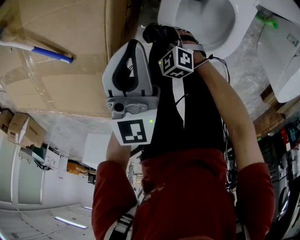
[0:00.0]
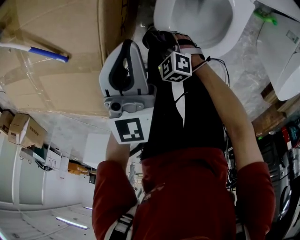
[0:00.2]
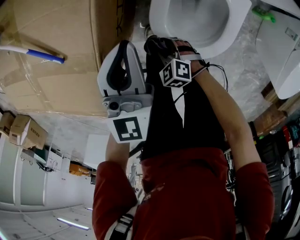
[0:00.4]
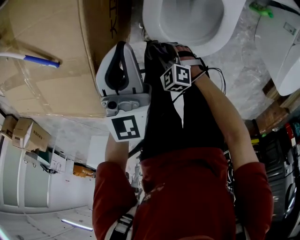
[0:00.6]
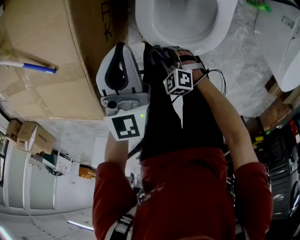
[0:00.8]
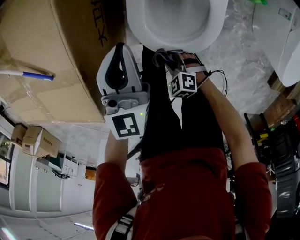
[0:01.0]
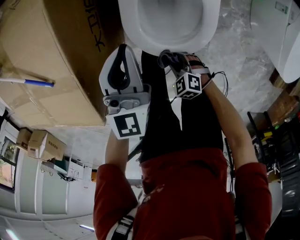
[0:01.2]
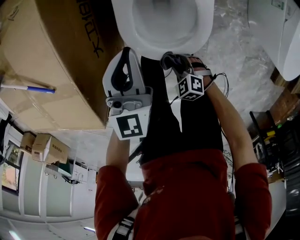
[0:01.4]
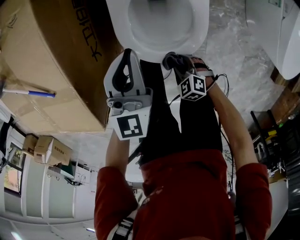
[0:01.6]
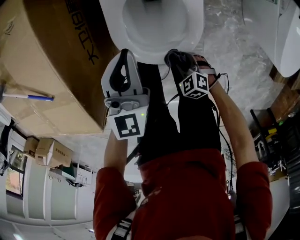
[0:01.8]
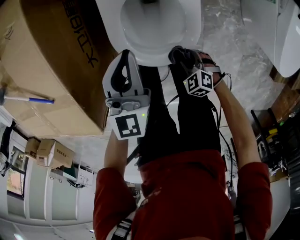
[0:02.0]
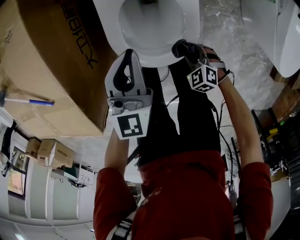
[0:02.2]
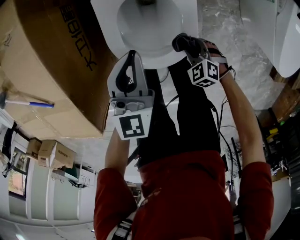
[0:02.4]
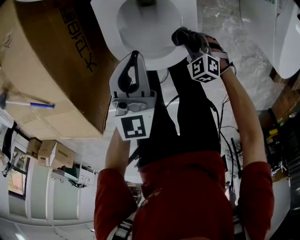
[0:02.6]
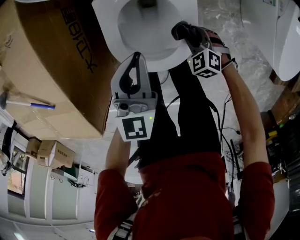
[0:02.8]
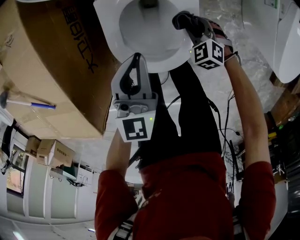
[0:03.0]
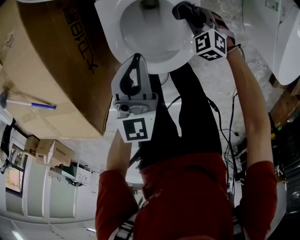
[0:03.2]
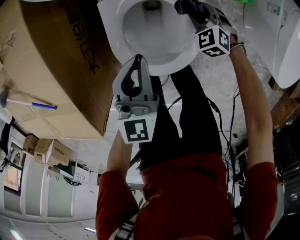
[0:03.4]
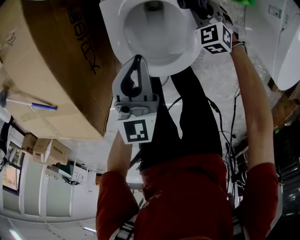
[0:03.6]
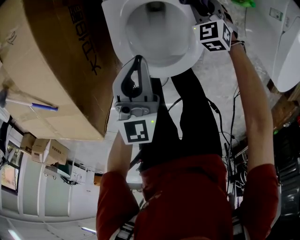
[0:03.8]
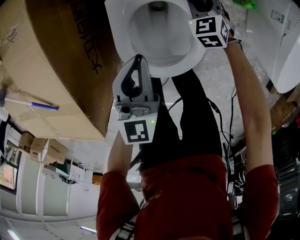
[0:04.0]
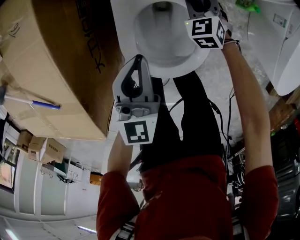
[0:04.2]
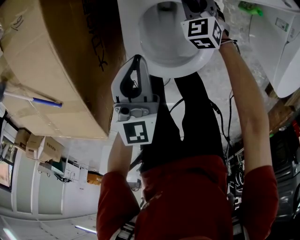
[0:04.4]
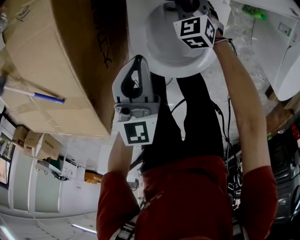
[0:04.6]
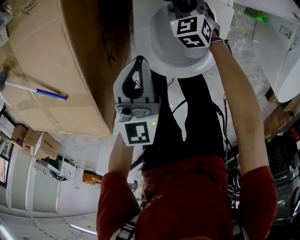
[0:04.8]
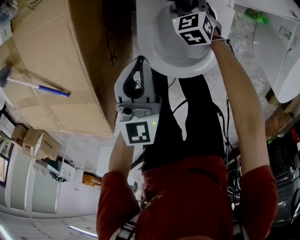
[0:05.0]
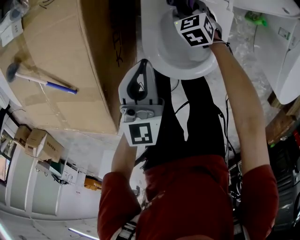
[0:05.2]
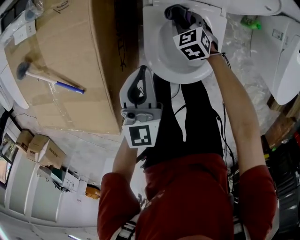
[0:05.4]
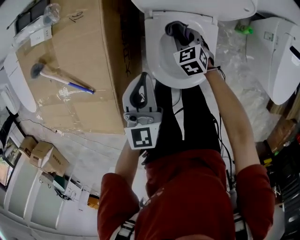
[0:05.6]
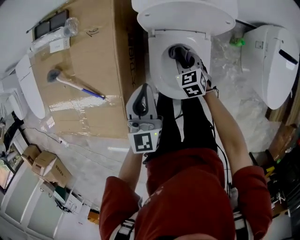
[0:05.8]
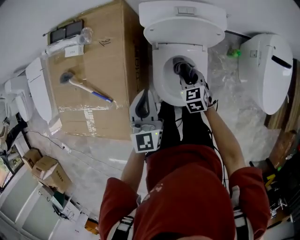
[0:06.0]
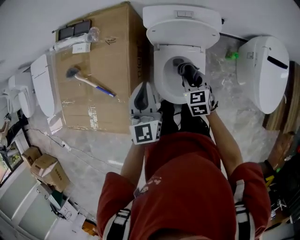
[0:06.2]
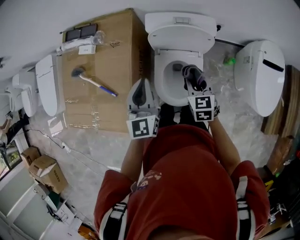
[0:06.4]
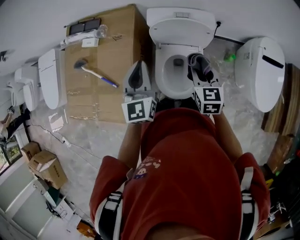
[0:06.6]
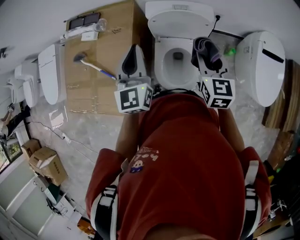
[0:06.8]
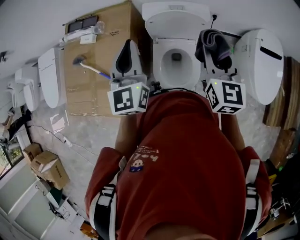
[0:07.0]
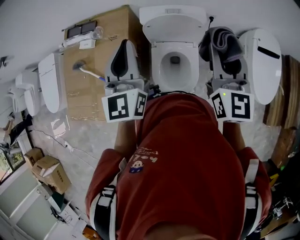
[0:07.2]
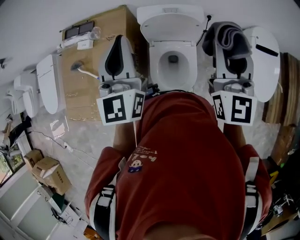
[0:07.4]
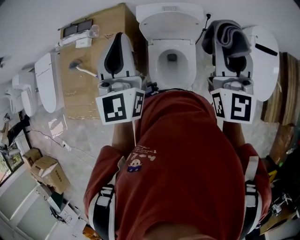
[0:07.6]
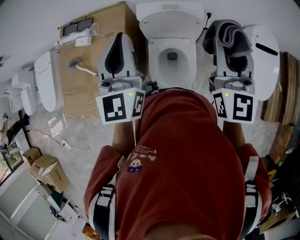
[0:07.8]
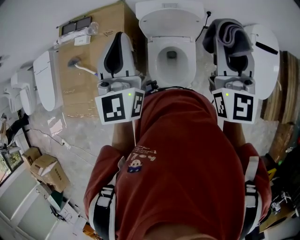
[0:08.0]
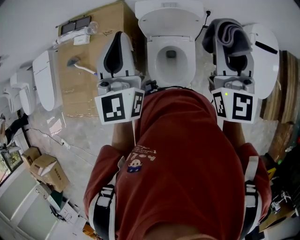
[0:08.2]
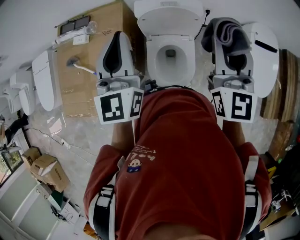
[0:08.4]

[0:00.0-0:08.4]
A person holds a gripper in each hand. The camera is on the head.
0:00.0 to 0:01.4: The left gripper travels to the right and backward by some 10 cm; the right gripper moves backward and to the right, approximately 20 cm.
0:01.4 to 0:02.8: The right gripper travels to the right and forward by some 20 cm, while the left gripper heads to the right, covering roughly 10 cm.
0:02.8 to 0:04.2: The left gripper changes place by approximately 5 cm, while the right gripper is displaced forward by some 20 cm, and changes its angle by roughly 20 degrees.
0:04.2 to 0:05.6: The left gripper moves upward and to the left, roughly 15 cm, while the right gripper moves to the left and upward, about 15 cm.
0:05.6 to 0:07.0: The left gripper goes approximately 30 cm upward, while the right gripper shifts approximately 50 cm upward, and tips its fingers upward by roughly 40 degrees.
0:07.0 to 0:08.4: The right gripper shifts about 10 cm upward, while the left gripper goes roughly 5 cm upward.

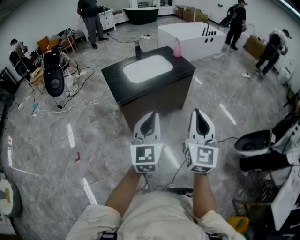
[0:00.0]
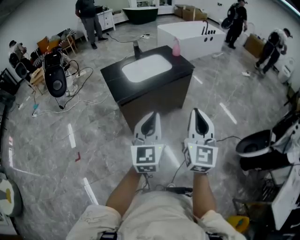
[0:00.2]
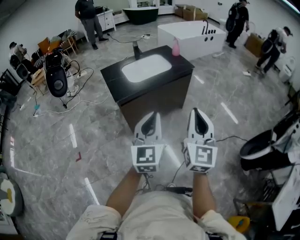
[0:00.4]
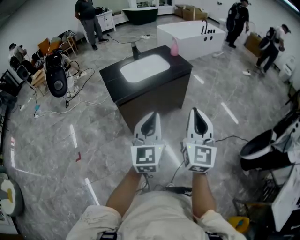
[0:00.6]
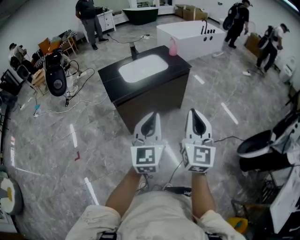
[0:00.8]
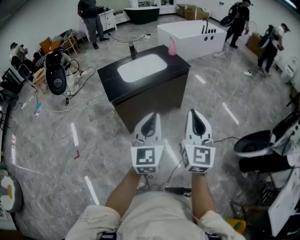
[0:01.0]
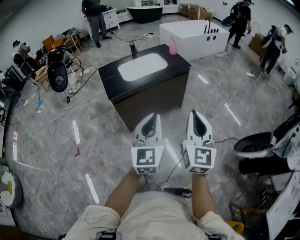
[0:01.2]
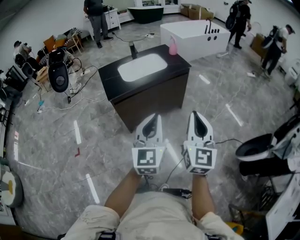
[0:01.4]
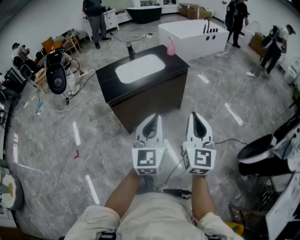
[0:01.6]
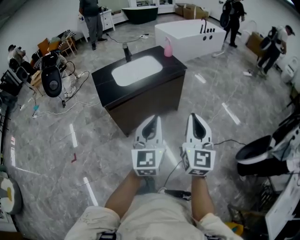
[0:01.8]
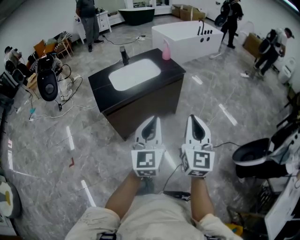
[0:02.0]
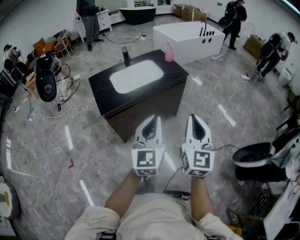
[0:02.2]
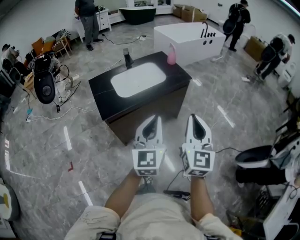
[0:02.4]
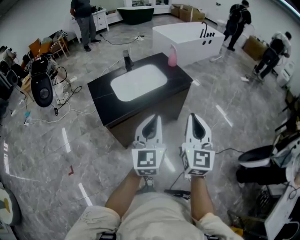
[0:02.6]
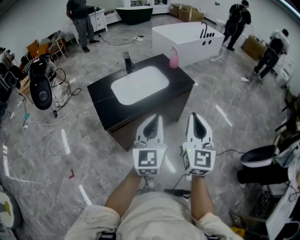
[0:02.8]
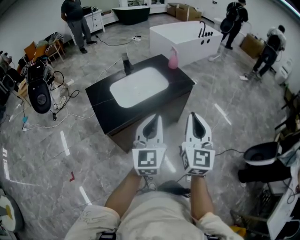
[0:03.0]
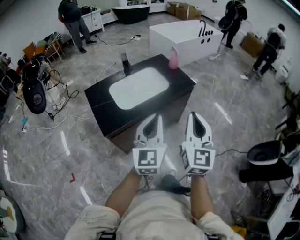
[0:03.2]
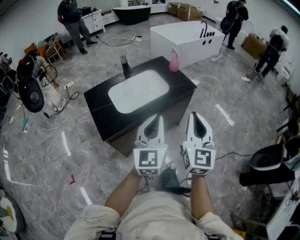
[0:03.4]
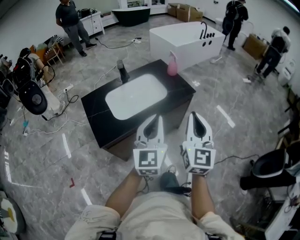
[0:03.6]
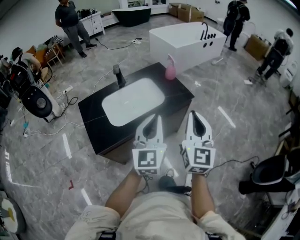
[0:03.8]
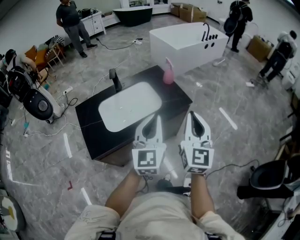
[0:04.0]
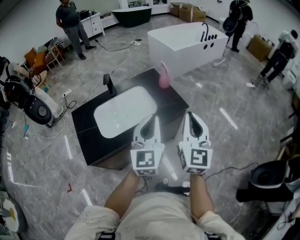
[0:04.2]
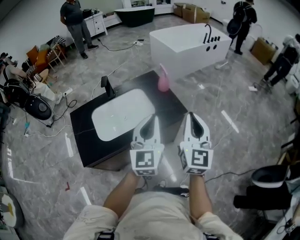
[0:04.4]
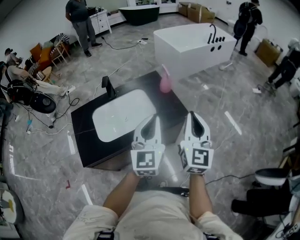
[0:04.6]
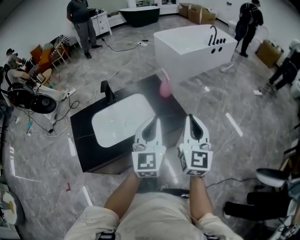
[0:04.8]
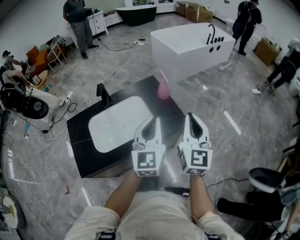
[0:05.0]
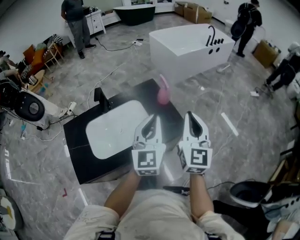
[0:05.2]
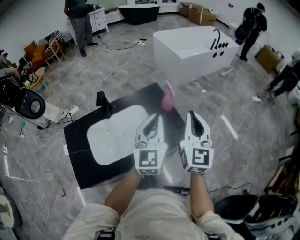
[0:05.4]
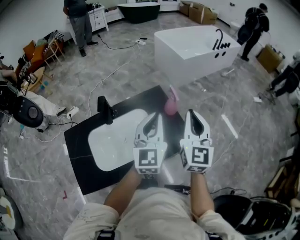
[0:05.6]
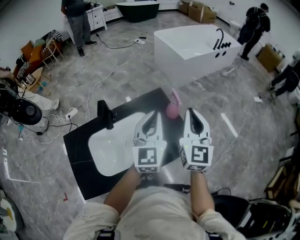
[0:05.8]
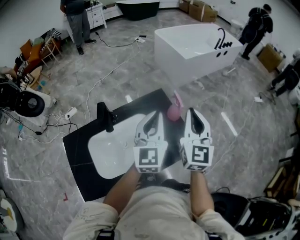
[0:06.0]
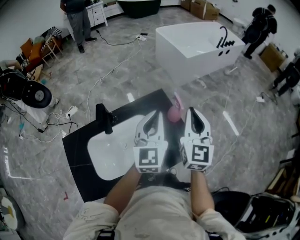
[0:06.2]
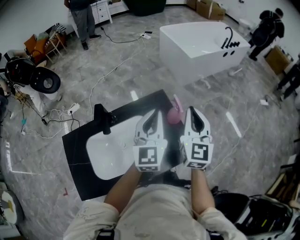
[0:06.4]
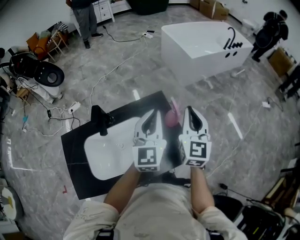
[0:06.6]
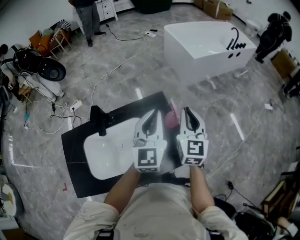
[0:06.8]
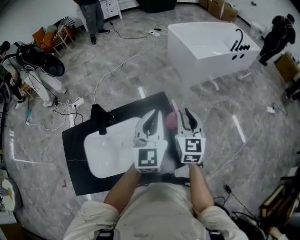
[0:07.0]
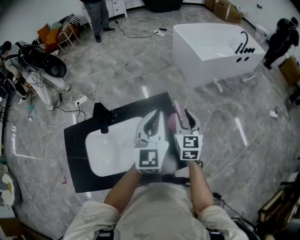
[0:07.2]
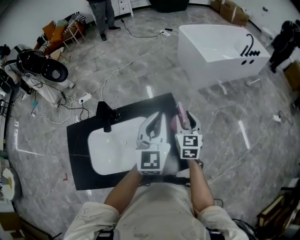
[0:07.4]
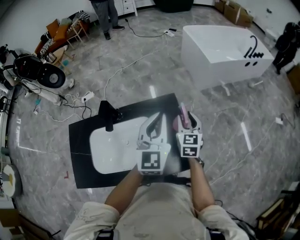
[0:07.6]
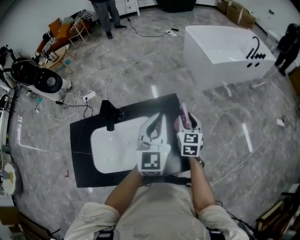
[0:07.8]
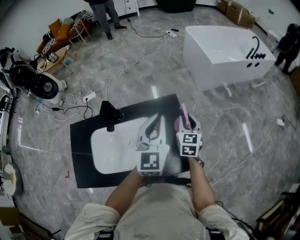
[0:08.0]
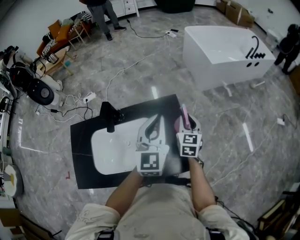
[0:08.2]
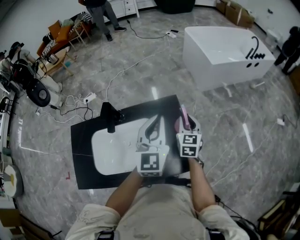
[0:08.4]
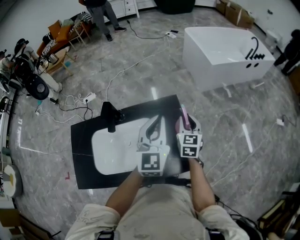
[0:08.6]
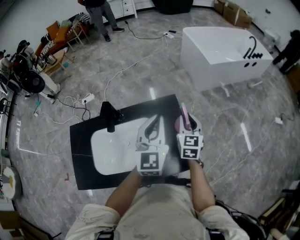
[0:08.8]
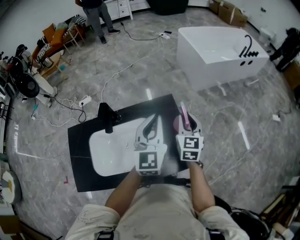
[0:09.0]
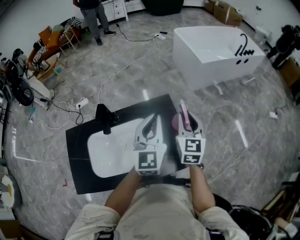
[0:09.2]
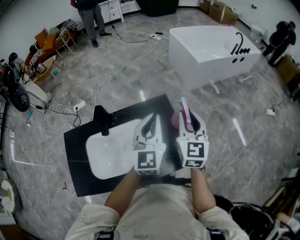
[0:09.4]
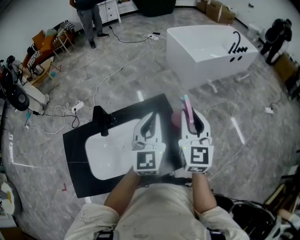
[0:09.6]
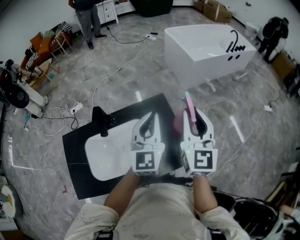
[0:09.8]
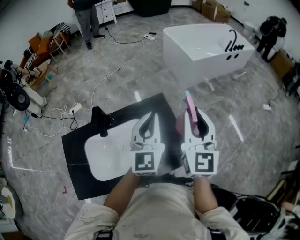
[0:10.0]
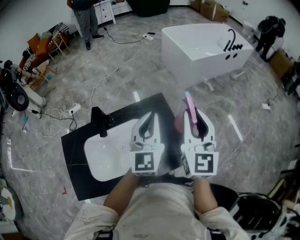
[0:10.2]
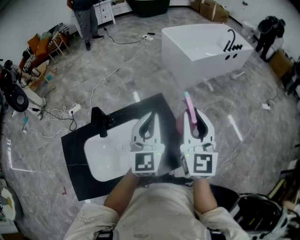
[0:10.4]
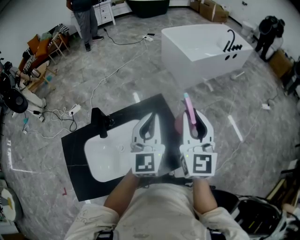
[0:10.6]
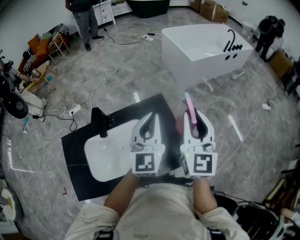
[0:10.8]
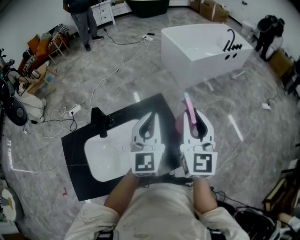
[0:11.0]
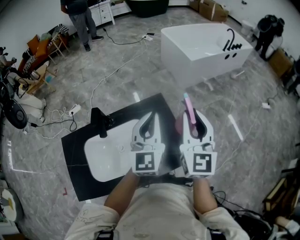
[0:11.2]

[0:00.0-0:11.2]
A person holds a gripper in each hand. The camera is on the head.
0:00.0 to 0:01.6: Both grippers travel together to the right, some 15 cm.
0:01.6 to 0:03.2: The grippers both shift forward and to the left by some 30 cm.
0:03.2 to 0:04.8: The two grippers go some 35 cm forward and to the right.
0:04.8 to 0:06.4: The two grippers go some 25 cm forward.
0:06.4 to 0:08.0: The left gripper ends up some 5 cm from where it was, while the right gripper shifts some 20 cm downward and forward, changes its angle by roughly 30 degrees, and opens up.
0:08.0 to 0:09.6: The right gripper heads upward, covering about 20 cm, and rotates roughly 20 degrees.
0:09.6 to 0:11.2: There are only small adjustments of the grippers.

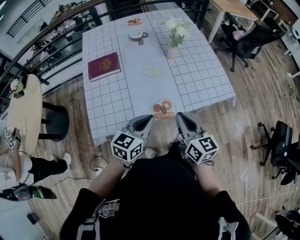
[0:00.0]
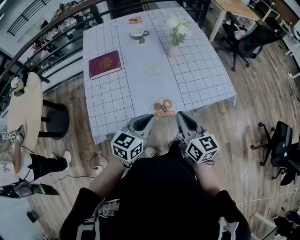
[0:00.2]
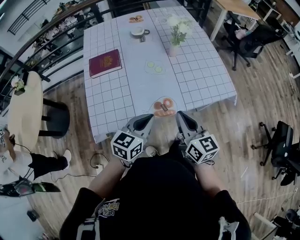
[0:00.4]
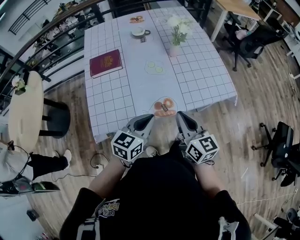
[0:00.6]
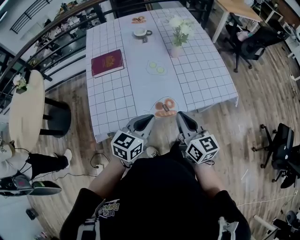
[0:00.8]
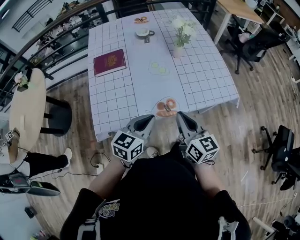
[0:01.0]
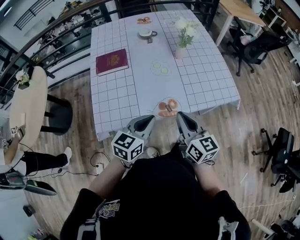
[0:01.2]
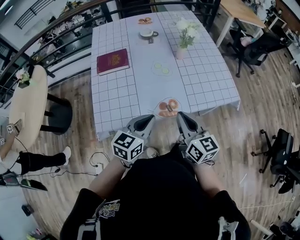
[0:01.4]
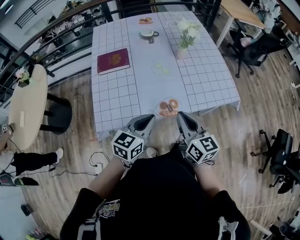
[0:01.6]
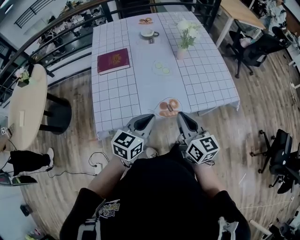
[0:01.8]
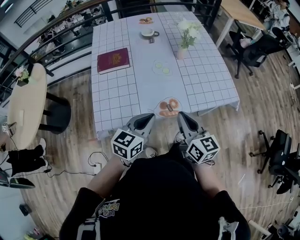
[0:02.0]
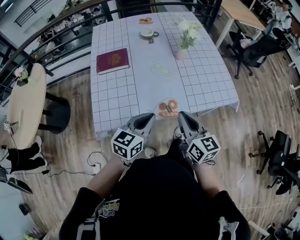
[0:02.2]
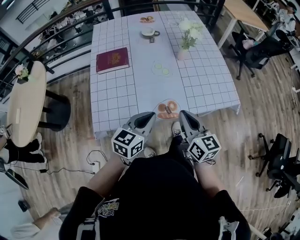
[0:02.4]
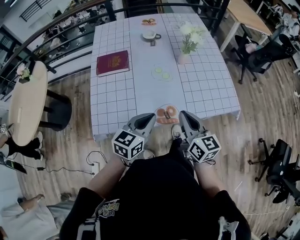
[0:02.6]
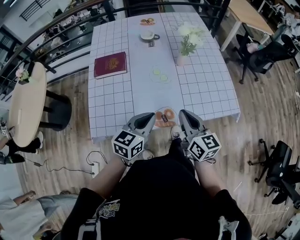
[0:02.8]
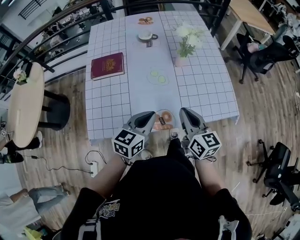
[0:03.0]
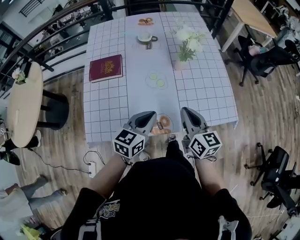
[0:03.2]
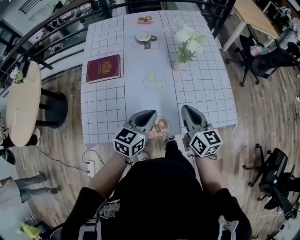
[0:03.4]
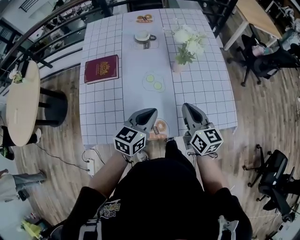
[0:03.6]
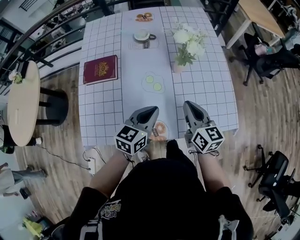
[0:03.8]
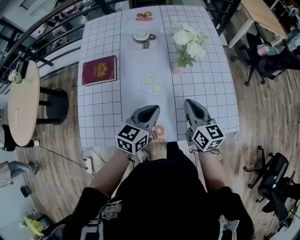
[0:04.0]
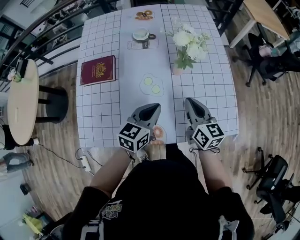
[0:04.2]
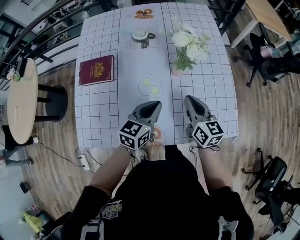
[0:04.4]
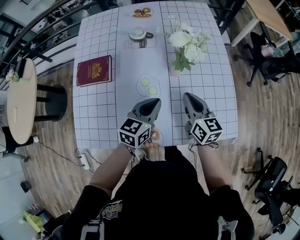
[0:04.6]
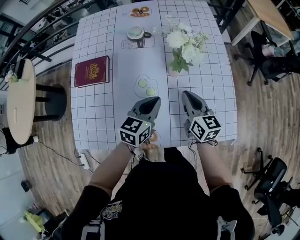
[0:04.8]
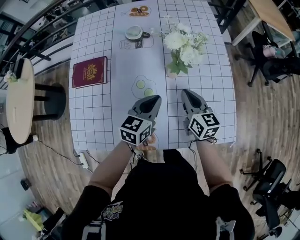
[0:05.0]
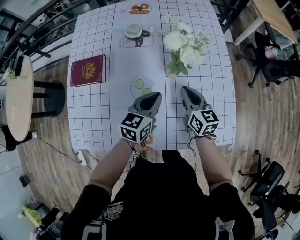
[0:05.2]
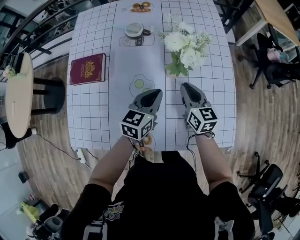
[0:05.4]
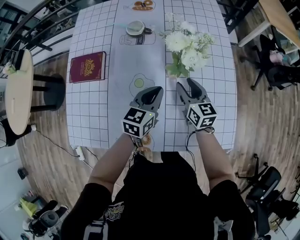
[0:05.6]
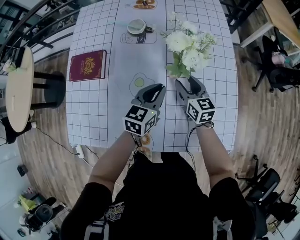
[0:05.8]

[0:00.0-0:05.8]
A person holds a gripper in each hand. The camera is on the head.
0:00.0 to 0:01.4: The grippers stay close to where they were, moving slightly.
0:01.4 to 0:02.8: Both grippers move forward, approximately 10 cm.
0:02.8 to 0:04.4: The grippers both shift forward by approximately 20 cm.
0:04.4 to 0:05.8: The left gripper is displaced forward by some 10 cm; the right gripper heads forward and downward, covering about 15 cm, and opens up.
